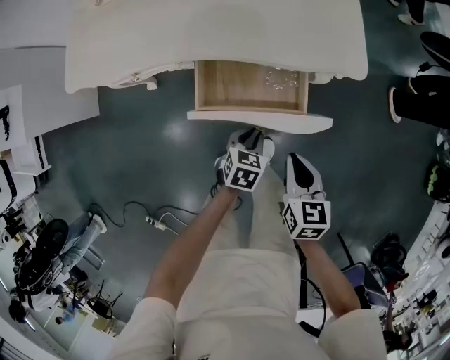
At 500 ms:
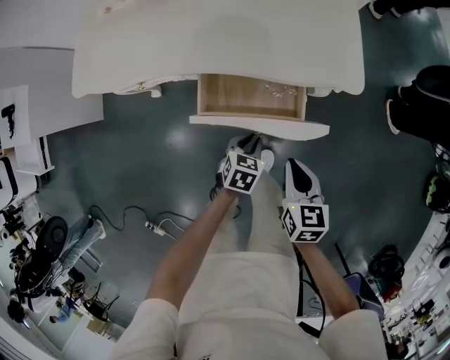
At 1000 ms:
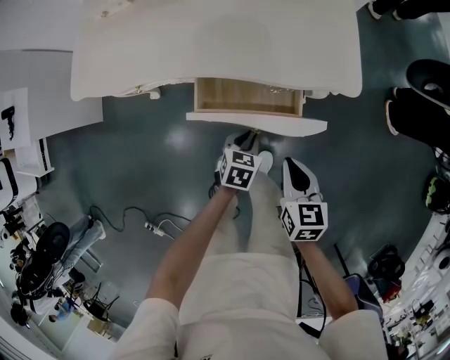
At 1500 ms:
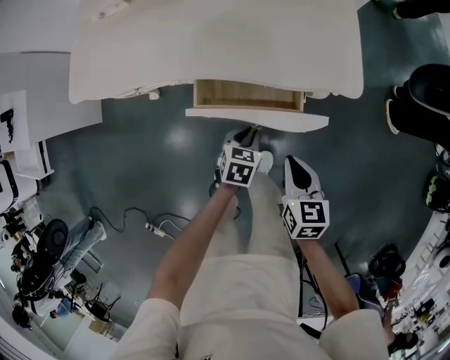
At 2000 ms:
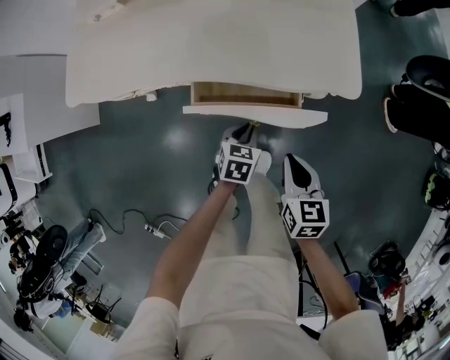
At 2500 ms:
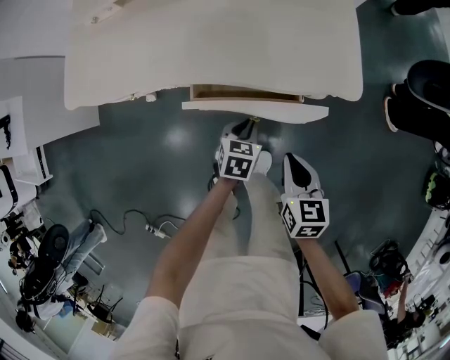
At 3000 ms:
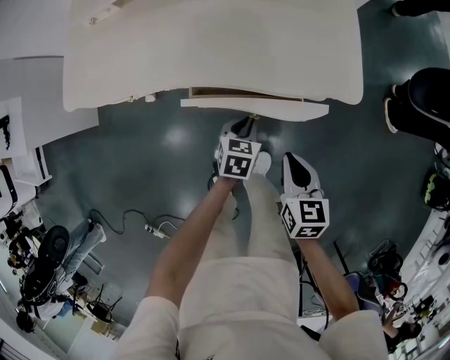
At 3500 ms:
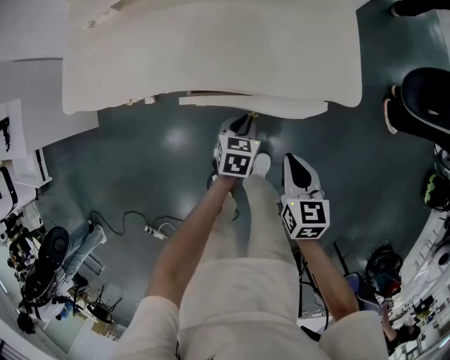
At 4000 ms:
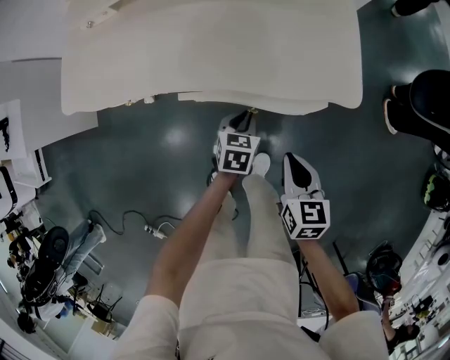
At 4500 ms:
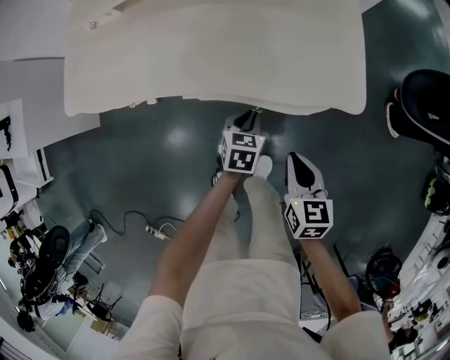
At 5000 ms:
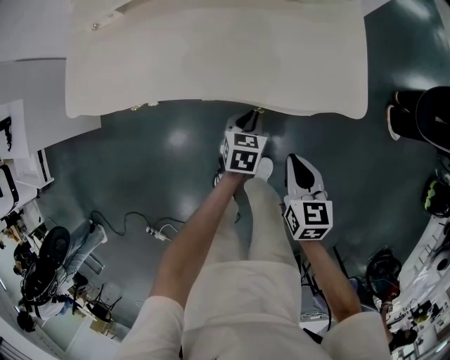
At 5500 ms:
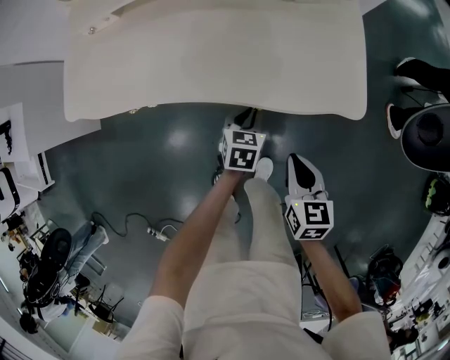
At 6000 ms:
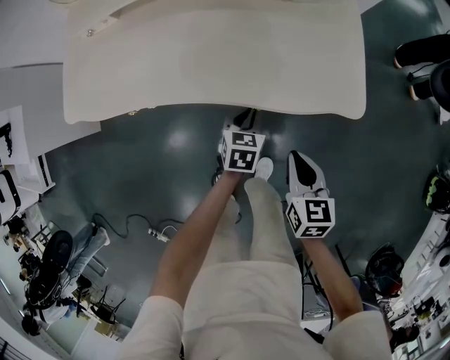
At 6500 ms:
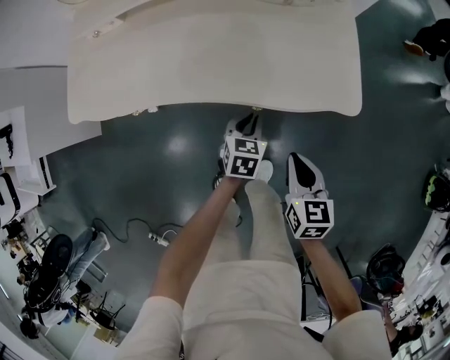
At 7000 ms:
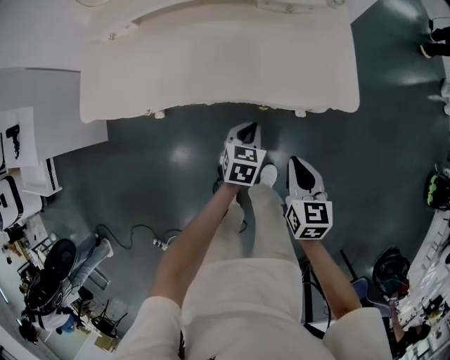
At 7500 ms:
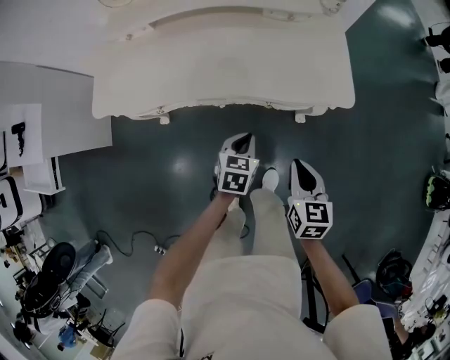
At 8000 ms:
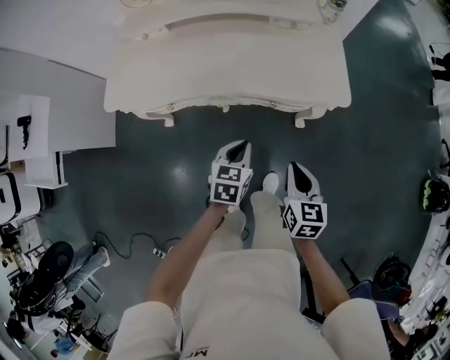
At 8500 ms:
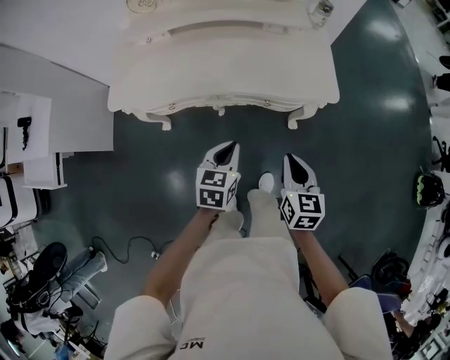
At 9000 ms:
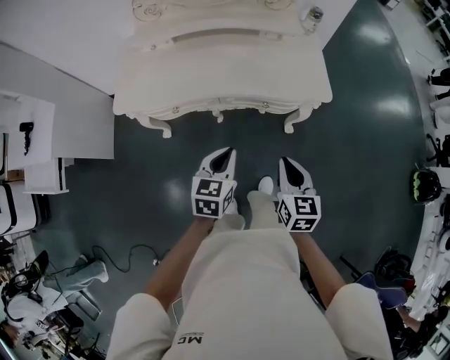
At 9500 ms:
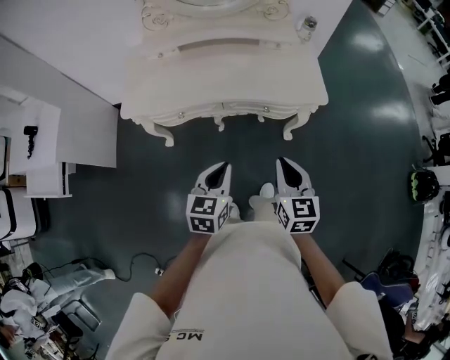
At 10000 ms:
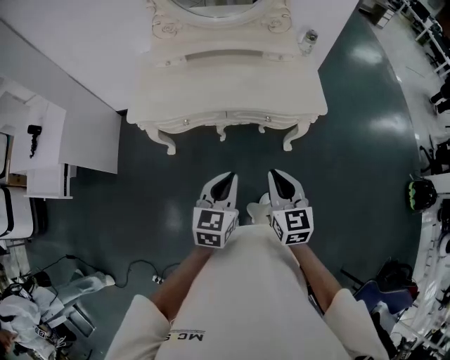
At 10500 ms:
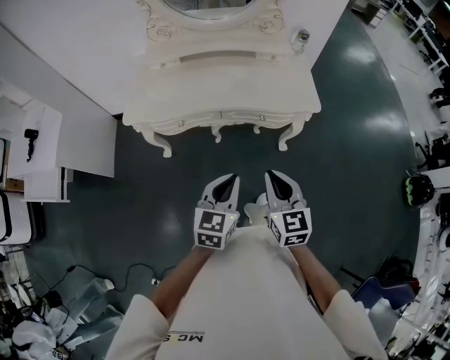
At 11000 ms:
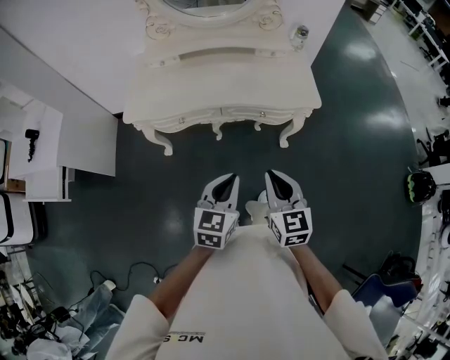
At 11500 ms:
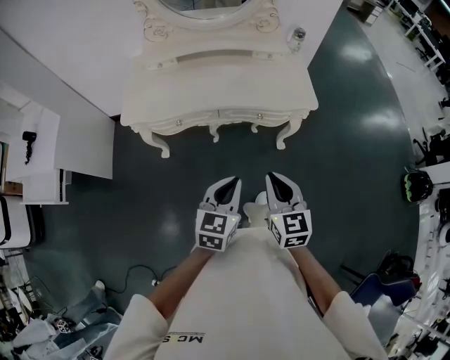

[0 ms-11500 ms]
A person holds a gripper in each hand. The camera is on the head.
0 ms to 2000 ms: Both grippers move forward, roughly 5 cm.
2000 ms to 4000 ms: The left gripper goes roughly 5 cm forward.
4000 ms to 6000 ms: The grippers stay close to where they were, moving slightly.
6000 ms to 7500 ms: Both grippers move backward, upward and to the left, approximately 10 cm.
7500 ms to 9500 ms: Both grippers move upward, backward and to the left, roughly 25 cm. The left gripper turns by some 20 degrees.
9500 ms to 11500 ms: Both grippers move backward, some 5 cm.

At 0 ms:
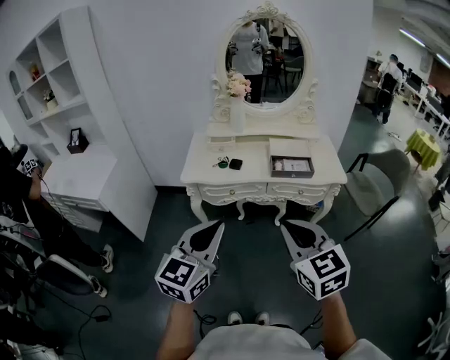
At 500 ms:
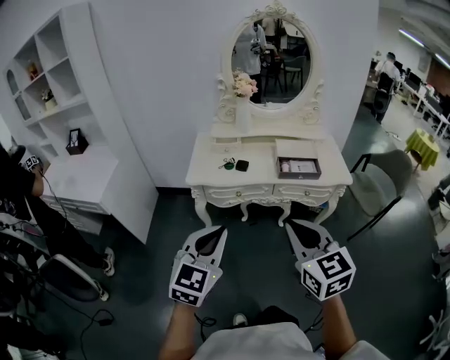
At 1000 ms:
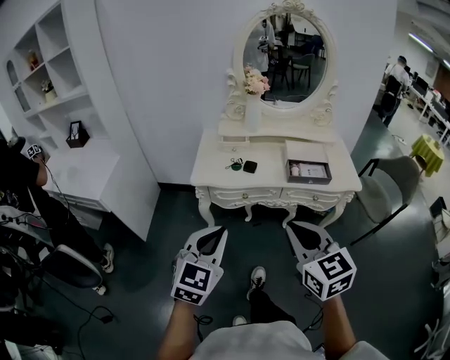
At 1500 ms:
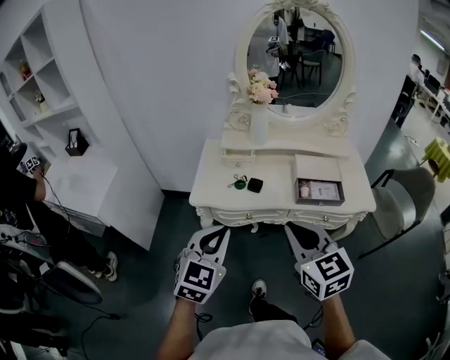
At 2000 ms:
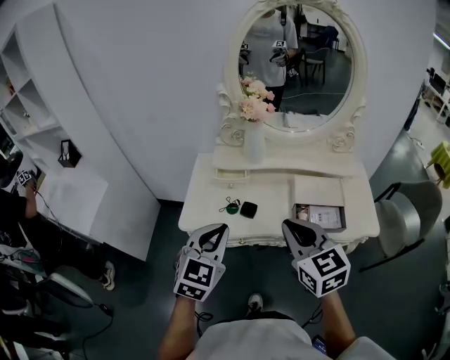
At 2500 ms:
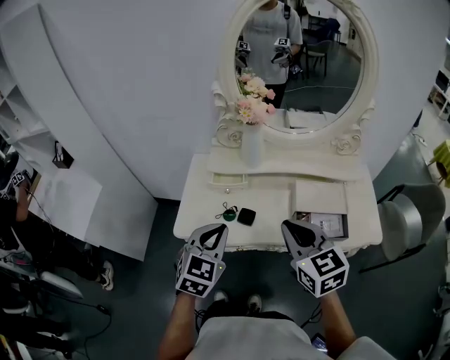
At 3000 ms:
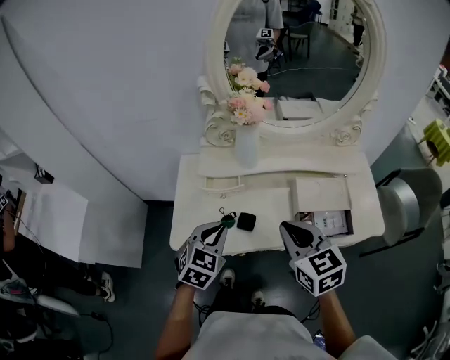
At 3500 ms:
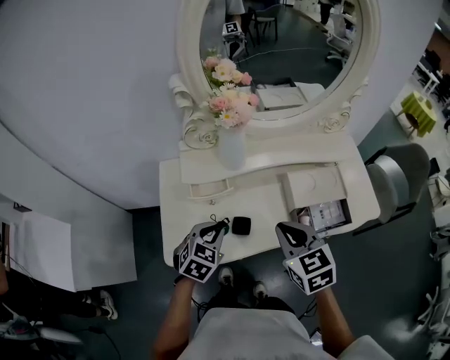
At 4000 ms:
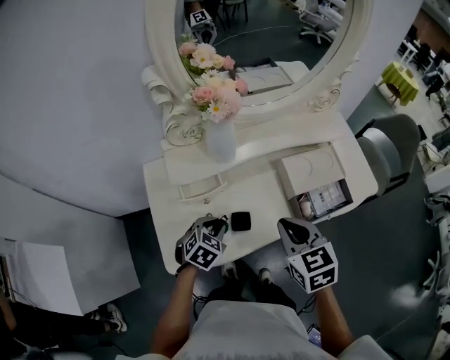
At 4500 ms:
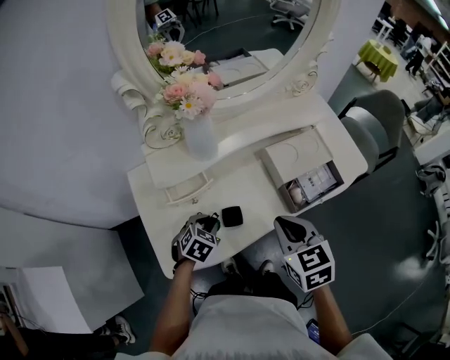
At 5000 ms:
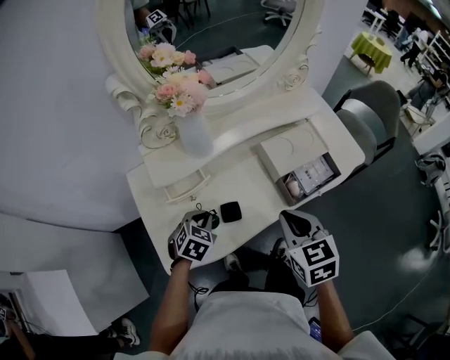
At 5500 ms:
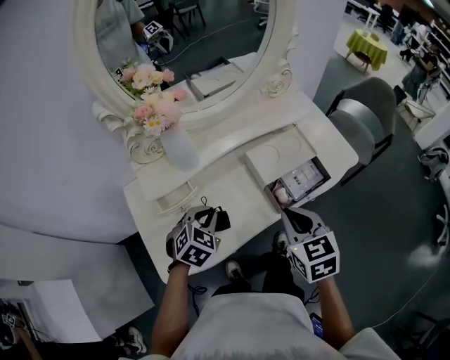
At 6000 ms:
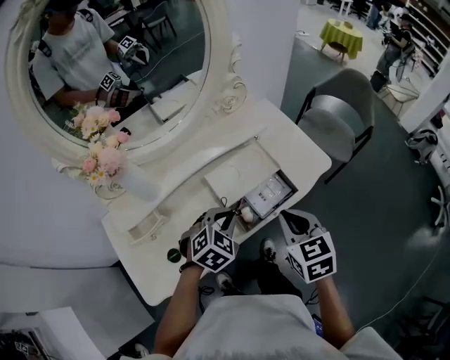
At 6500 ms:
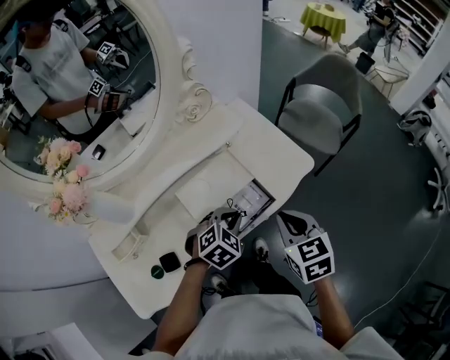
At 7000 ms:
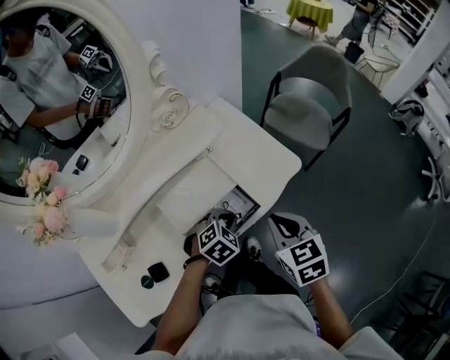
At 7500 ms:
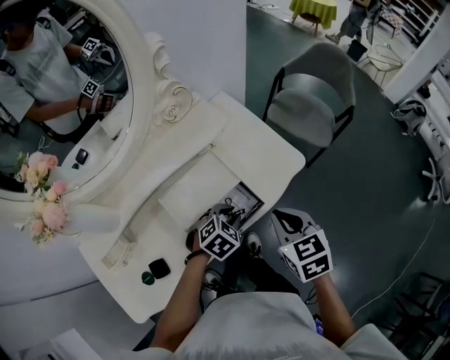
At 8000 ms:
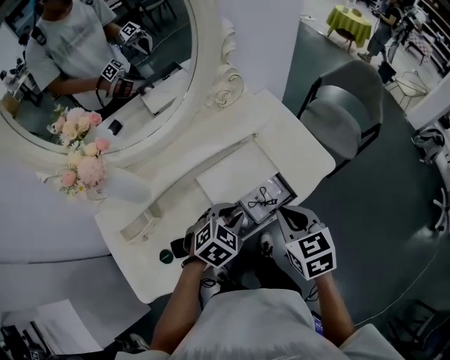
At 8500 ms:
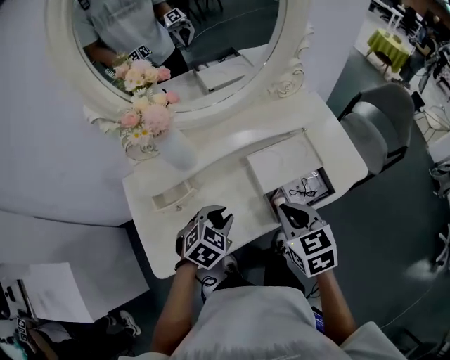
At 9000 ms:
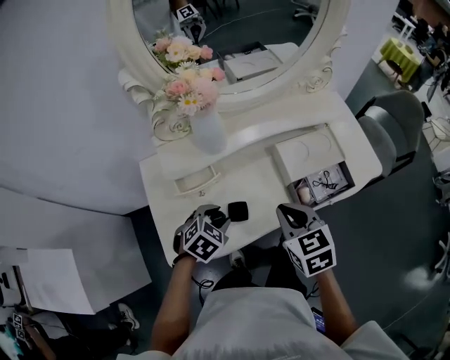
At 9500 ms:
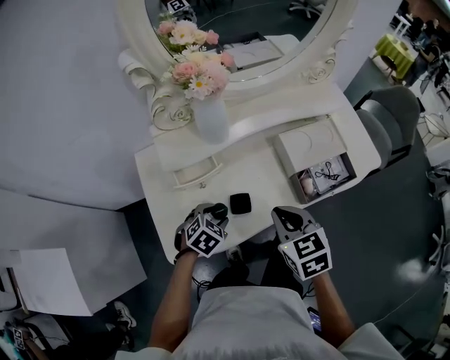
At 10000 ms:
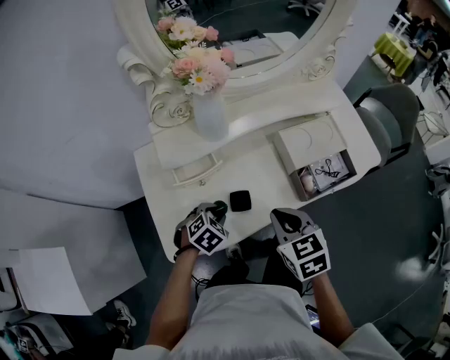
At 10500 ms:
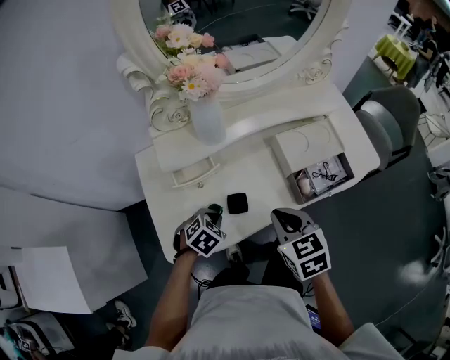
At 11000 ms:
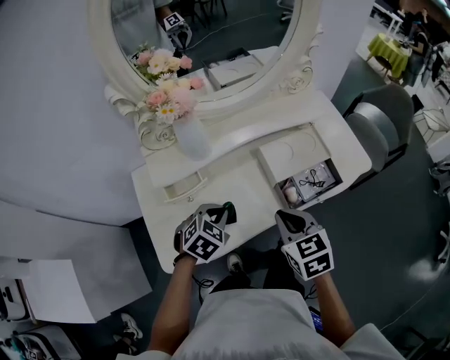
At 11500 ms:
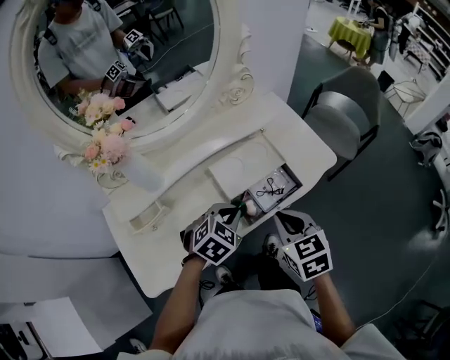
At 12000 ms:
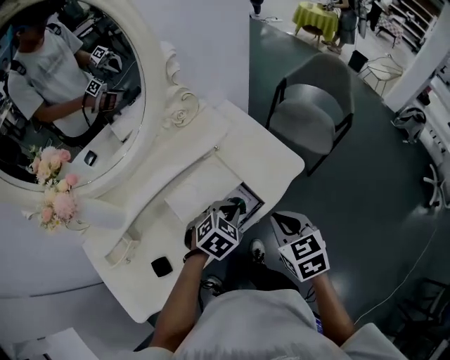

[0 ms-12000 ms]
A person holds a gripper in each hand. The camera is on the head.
0 ms to 2000 ms: The grippers both shift forward by approximately 35 cm. The left gripper rotates approximately 20 degrees.
2000 ms to 4000 ms: The left gripper heads downward, covering about 25 cm, tips its fingers downward by about 30 degrees, and opens its fingers. The right gripper is displaced downward by approximately 15 cm, and turns by roughly 30 degrees.
4000 ms to 6000 ms: Both grippers move to the right, about 25 cm. The left gripper rotates about 30 degrees.
6000 ms to 8000 ms: The left gripper goes to the right and returns, roughly 15 cm each way, while the right gripper goes to the right and returns, approximately 10 cm each way.
8000 ms to 10000 ms: The two grippers go about 30 cm to the left and backward. The left gripper swivels some 20 degrees.
10000 ms to 12000 ms: The left gripper goes roughly 40 cm to the right and forward, changes its angle by about 30 degrees, and closes up. The right gripper travels to the right by roughly 30 cm, and rotates roughly 20 degrees.

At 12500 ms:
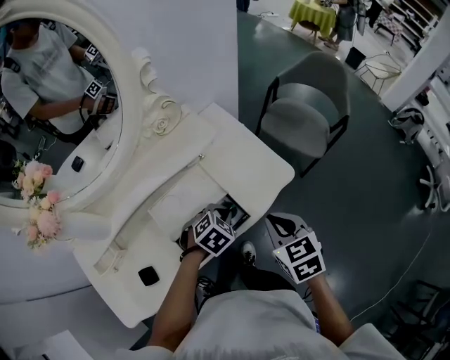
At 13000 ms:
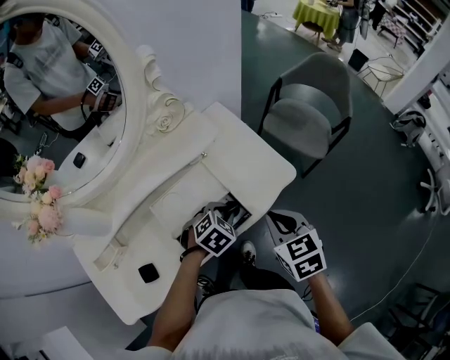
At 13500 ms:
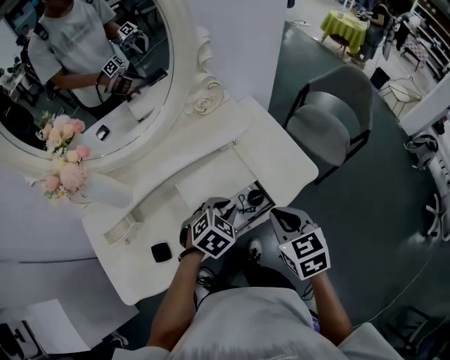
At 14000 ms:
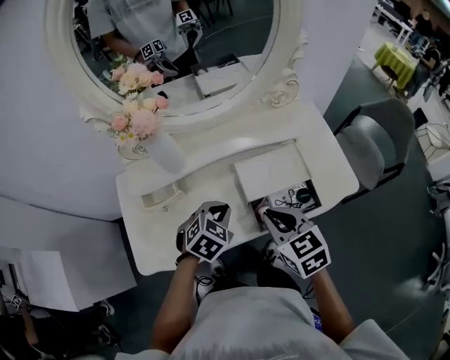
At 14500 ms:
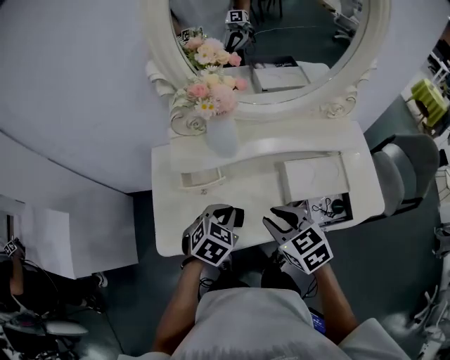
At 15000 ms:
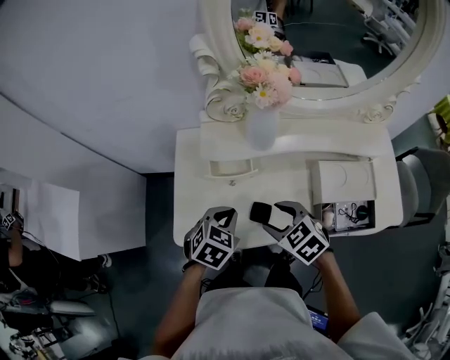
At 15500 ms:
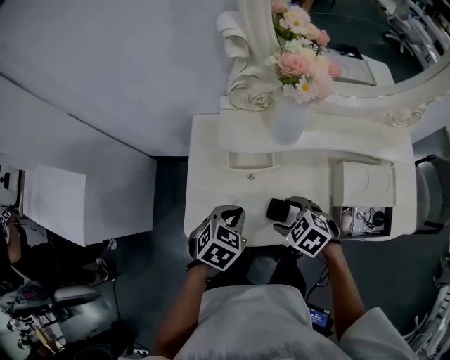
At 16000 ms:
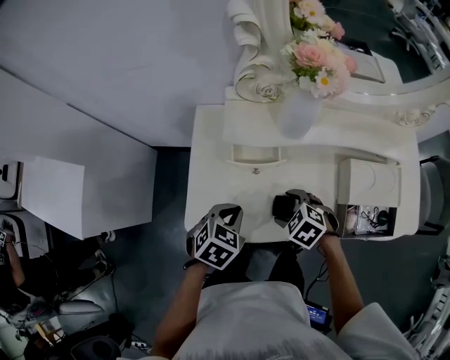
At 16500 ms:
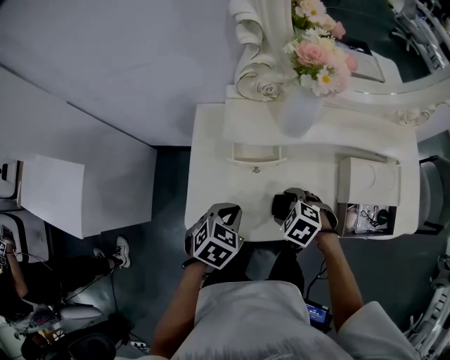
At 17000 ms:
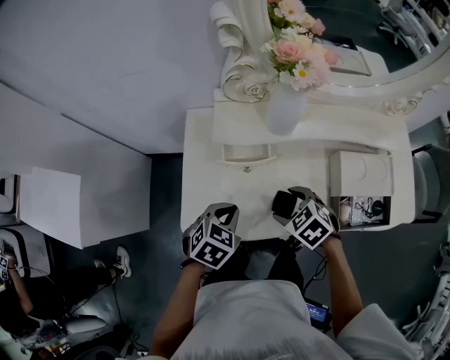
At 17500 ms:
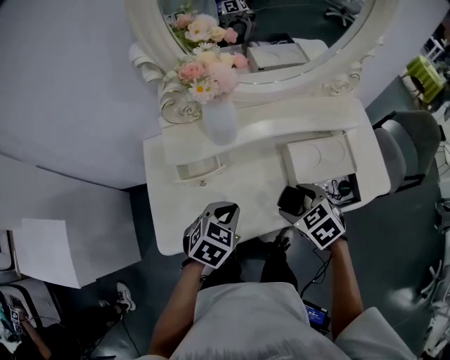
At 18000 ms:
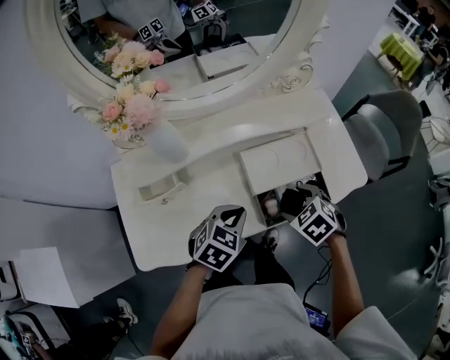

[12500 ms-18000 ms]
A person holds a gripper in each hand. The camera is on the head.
12500 ms to 14500 ms: The right gripper moves roughly 35 cm, and rotates roughly 50 degrees, while the left gripper ends up some 40 cm from where it was, and swivels about 40 degrees.
14500 ms to 16000 ms: The right gripper is displaced downward and to the left by some 20 cm, swivels some 40 degrees, and opens up; the left gripper is displaced to the left and downward by some 15 cm.
16000 ms to 18000 ms: The right gripper ends up about 30 cm from where it was, and turns by approximately 30 degrees, while the left gripper ends up approximately 30 cm from where it was, and rotates roughly 30 degrees.
